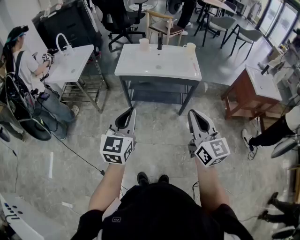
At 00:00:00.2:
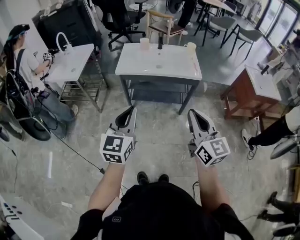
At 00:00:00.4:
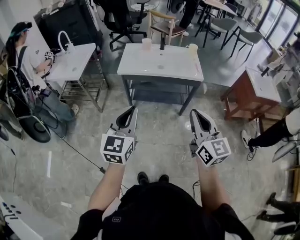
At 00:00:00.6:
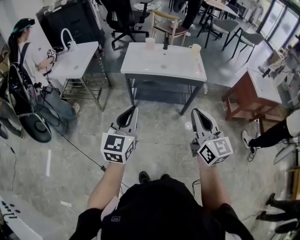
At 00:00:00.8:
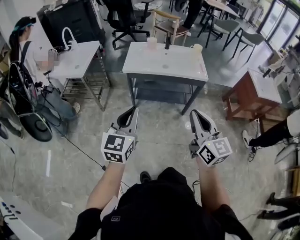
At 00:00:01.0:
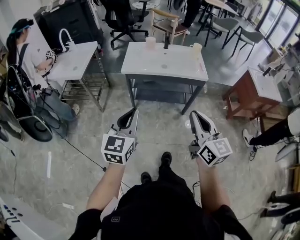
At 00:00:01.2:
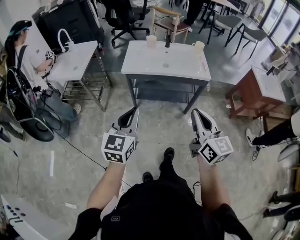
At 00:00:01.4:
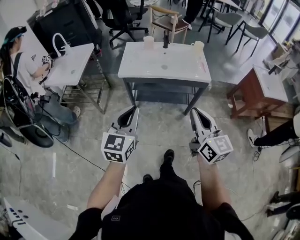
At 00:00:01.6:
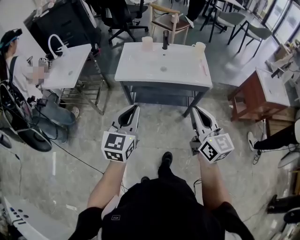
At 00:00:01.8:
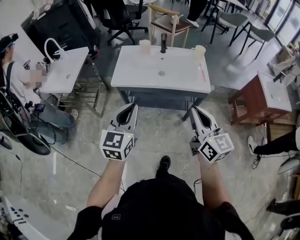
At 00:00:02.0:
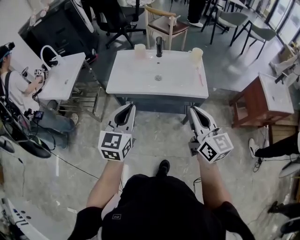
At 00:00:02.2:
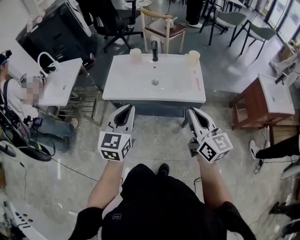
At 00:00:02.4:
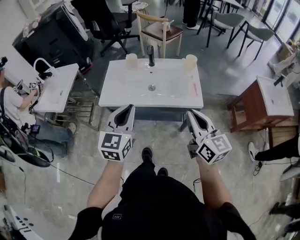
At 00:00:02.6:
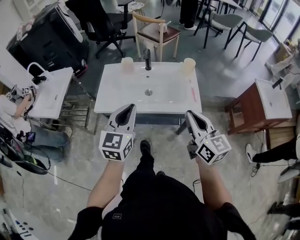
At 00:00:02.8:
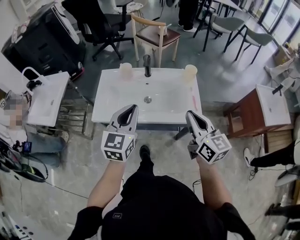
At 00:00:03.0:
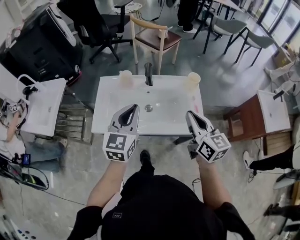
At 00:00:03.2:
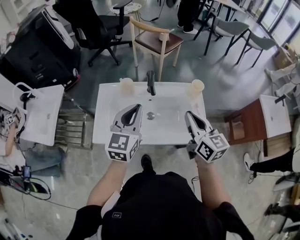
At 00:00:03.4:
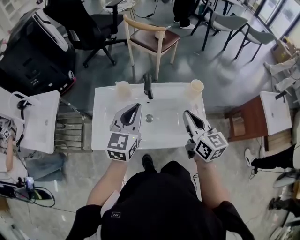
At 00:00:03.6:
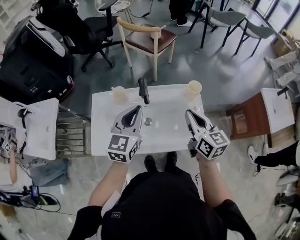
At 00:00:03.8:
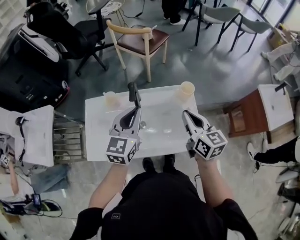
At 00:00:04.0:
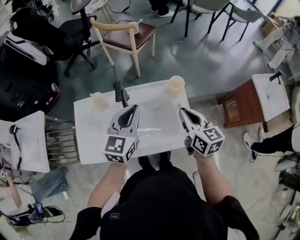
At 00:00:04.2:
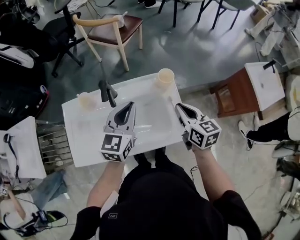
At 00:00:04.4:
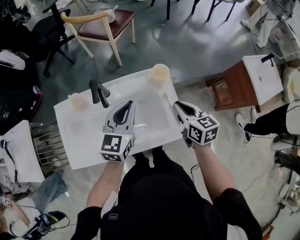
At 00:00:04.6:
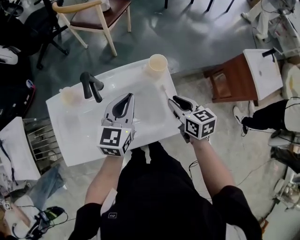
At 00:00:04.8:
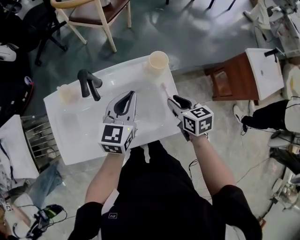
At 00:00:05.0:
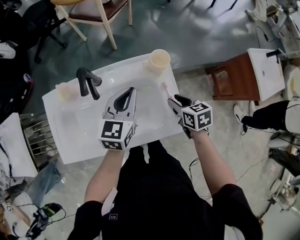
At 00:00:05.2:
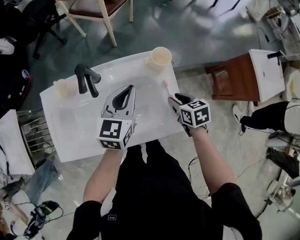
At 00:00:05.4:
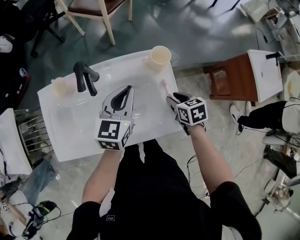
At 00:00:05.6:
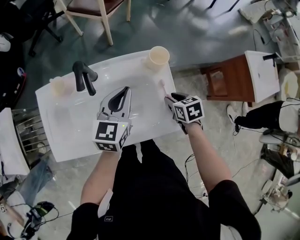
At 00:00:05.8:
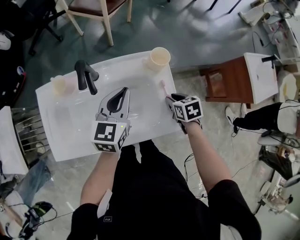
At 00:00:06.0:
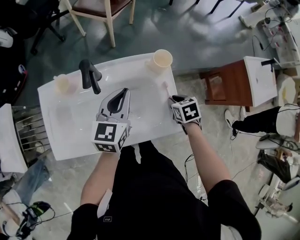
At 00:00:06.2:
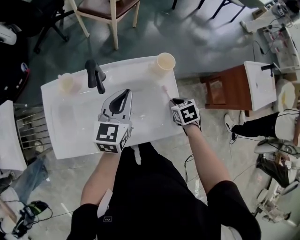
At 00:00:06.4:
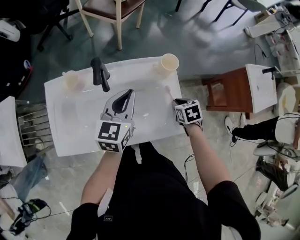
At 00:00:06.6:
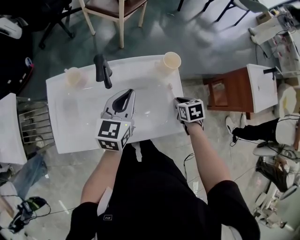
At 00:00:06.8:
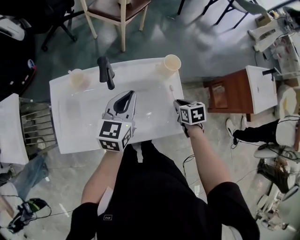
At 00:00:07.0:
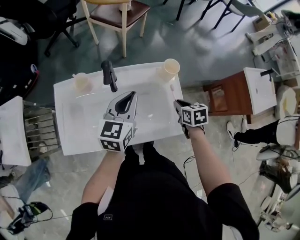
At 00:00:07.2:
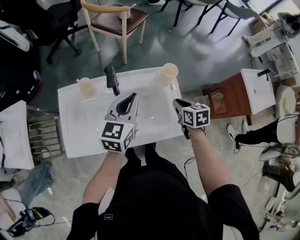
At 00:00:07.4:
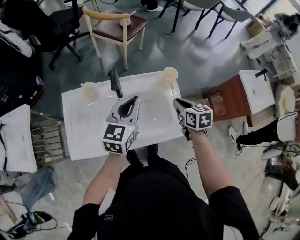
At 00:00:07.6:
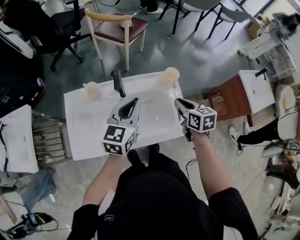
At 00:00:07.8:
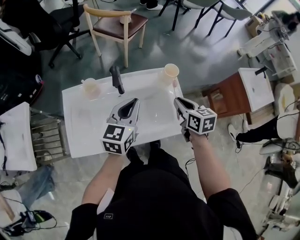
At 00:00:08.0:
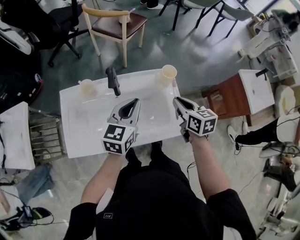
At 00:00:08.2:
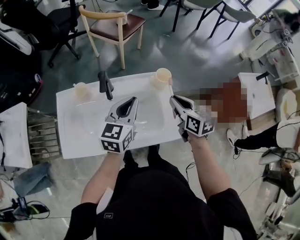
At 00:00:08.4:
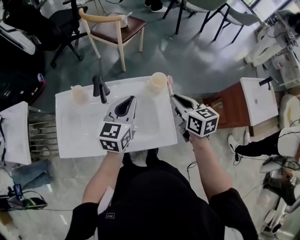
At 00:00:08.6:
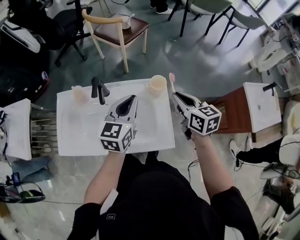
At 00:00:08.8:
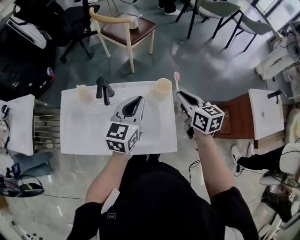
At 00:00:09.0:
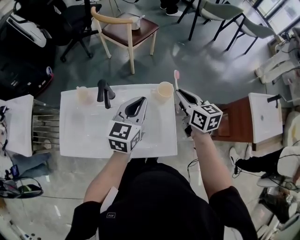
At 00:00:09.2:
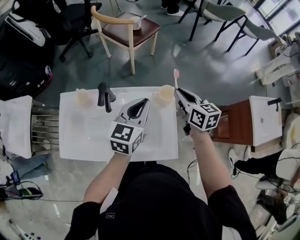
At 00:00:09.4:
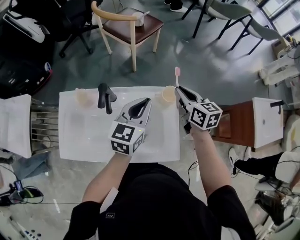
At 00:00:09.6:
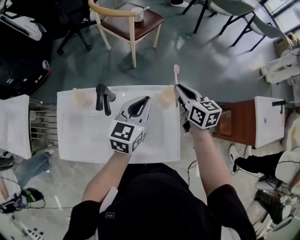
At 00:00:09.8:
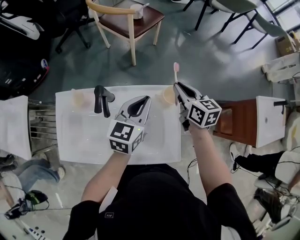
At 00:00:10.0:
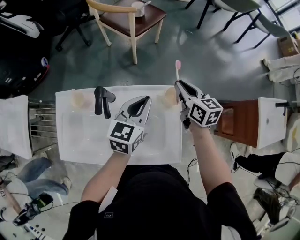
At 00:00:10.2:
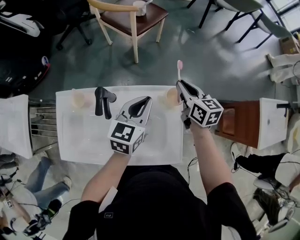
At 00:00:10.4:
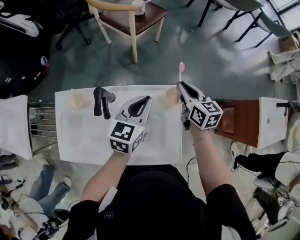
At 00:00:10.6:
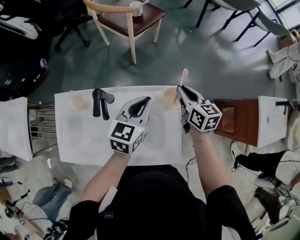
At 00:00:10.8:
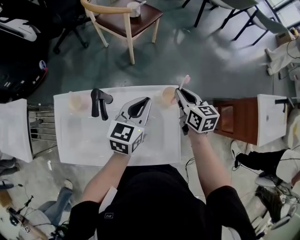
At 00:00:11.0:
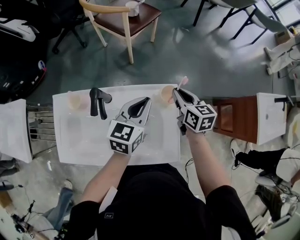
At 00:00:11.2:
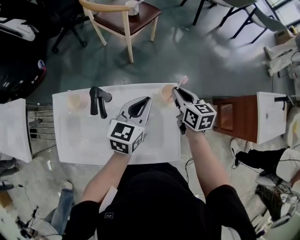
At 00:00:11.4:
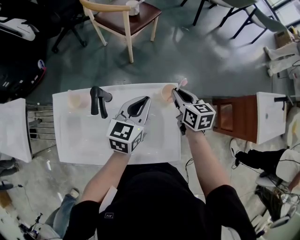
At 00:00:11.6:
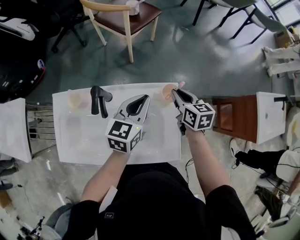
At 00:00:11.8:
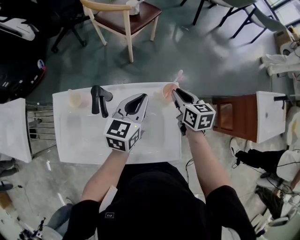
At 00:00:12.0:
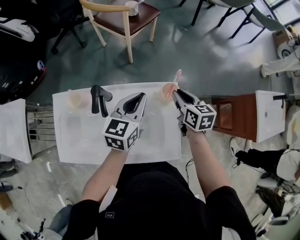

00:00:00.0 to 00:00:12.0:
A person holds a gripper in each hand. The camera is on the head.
00:00:00.0 to 00:00:01.6: The grippers both shift forward by some 15 cm.
00:00:01.6 to 00:00:03.0: The two grippers go some 40 cm forward.
00:00:03.0 to 00:00:04.4: The right gripper is displaced forward, to the right and downward by roughly 25 cm, and turns by about 20 degrees. Meanwhile the left gripper goes some 30 cm forward and to the right.
00:00:04.4 to 00:00:06.0: The left gripper moves downward, roughly 5 cm. Meanwhile the right gripper goes about 15 cm downward, and tilts its fingers approximately 30 degrees downward.
00:00:06.0 to 00:00:07.6: The left gripper heads upward and backward, covering roughly 10 cm. The right gripper heads upward and to the left, covering approximately 20 cm, and turns by roughly 30 degrees.
00:00:07.6 to 00:00:09.0: The left gripper shifts about 15 cm to the right and forward, while the right gripper moves forward and to the right, some 15 cm.
00:00:09.0 to 00:00:10.4: The two grippers go about 10 cm forward and downward.
00:00:10.4 to 00:00:12.0: The right gripper shifts by approximately 5 cm.

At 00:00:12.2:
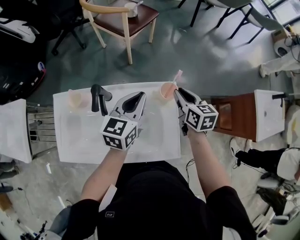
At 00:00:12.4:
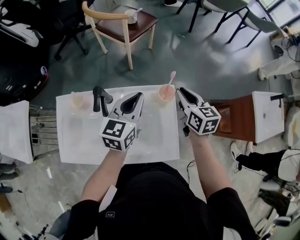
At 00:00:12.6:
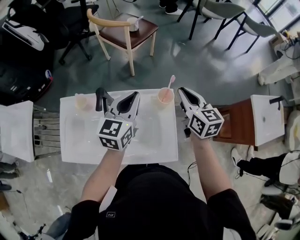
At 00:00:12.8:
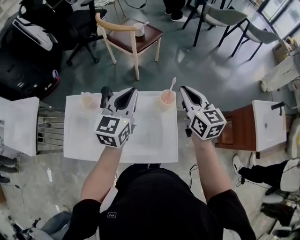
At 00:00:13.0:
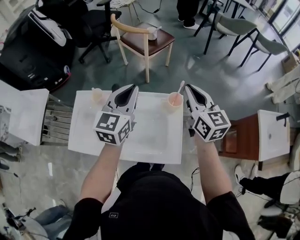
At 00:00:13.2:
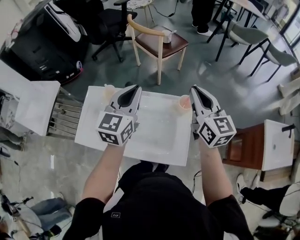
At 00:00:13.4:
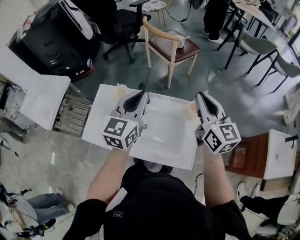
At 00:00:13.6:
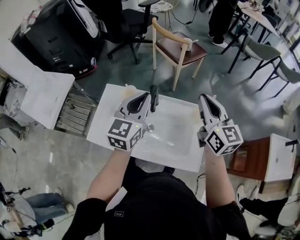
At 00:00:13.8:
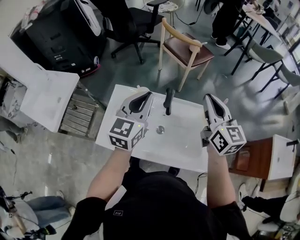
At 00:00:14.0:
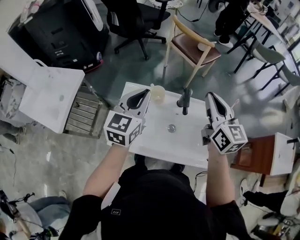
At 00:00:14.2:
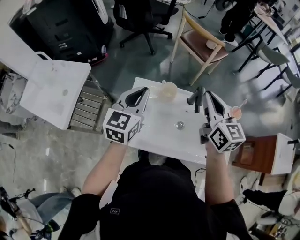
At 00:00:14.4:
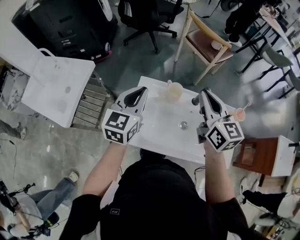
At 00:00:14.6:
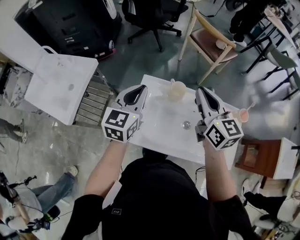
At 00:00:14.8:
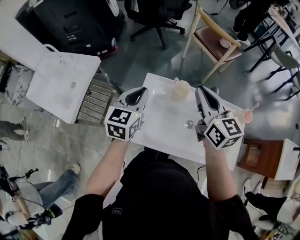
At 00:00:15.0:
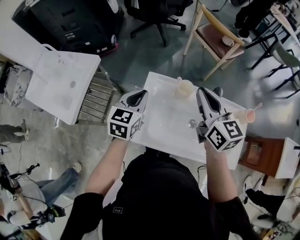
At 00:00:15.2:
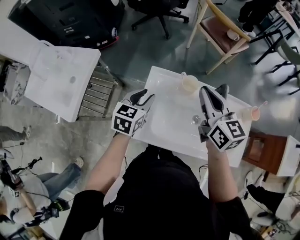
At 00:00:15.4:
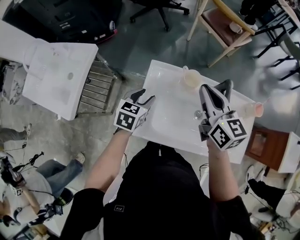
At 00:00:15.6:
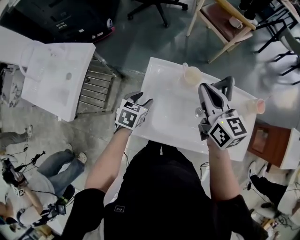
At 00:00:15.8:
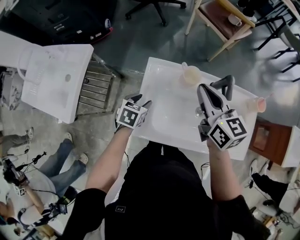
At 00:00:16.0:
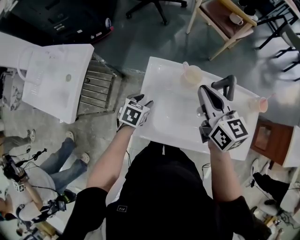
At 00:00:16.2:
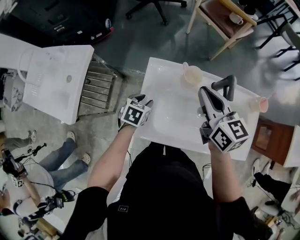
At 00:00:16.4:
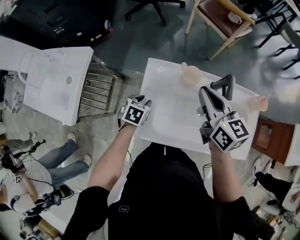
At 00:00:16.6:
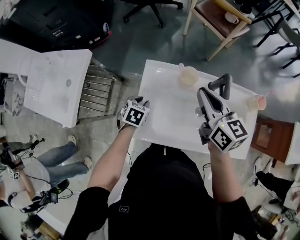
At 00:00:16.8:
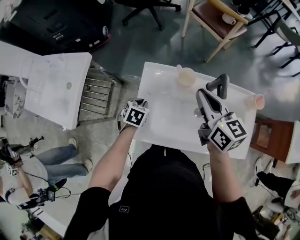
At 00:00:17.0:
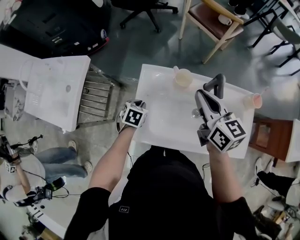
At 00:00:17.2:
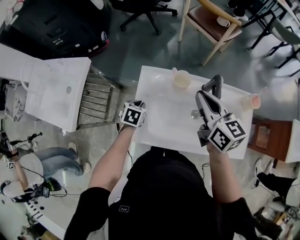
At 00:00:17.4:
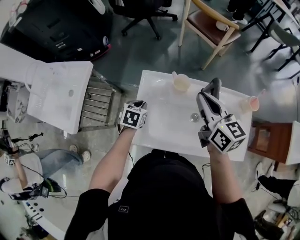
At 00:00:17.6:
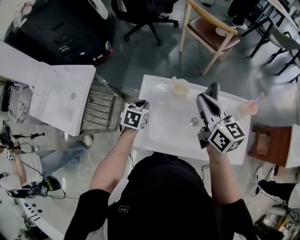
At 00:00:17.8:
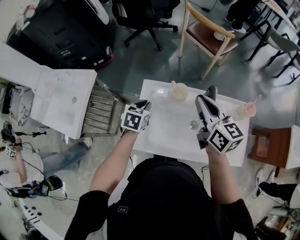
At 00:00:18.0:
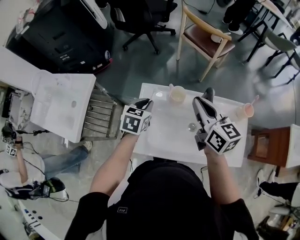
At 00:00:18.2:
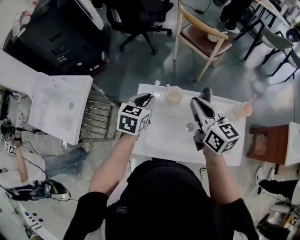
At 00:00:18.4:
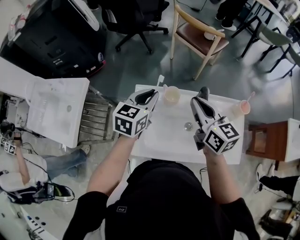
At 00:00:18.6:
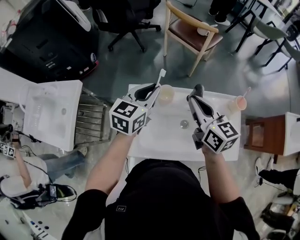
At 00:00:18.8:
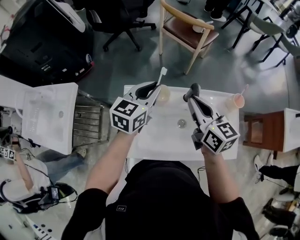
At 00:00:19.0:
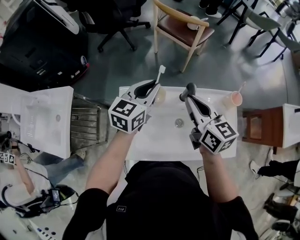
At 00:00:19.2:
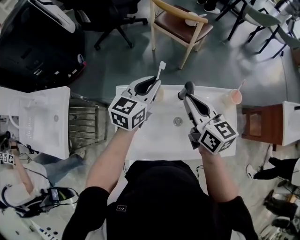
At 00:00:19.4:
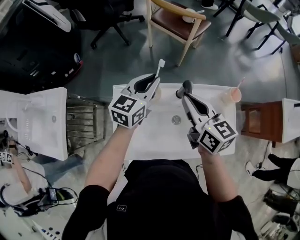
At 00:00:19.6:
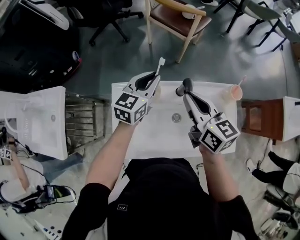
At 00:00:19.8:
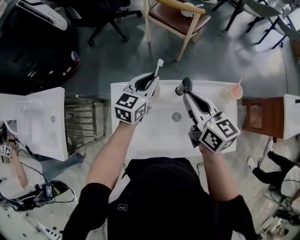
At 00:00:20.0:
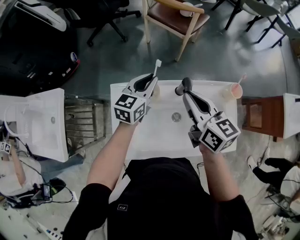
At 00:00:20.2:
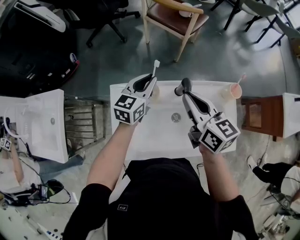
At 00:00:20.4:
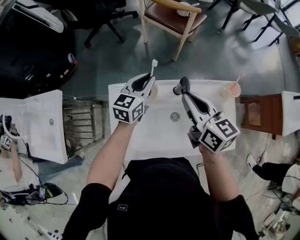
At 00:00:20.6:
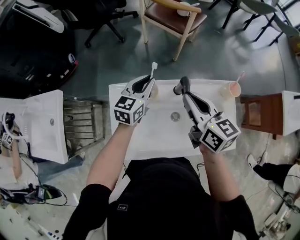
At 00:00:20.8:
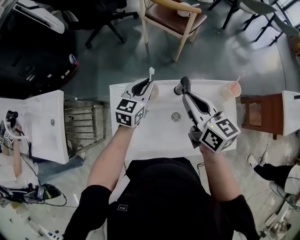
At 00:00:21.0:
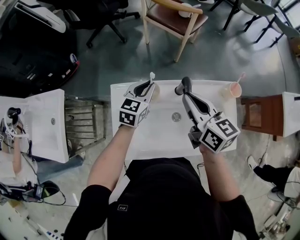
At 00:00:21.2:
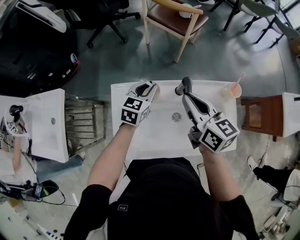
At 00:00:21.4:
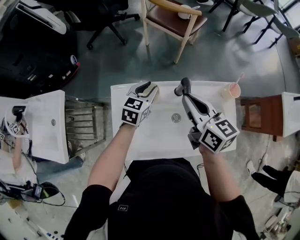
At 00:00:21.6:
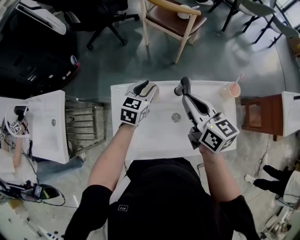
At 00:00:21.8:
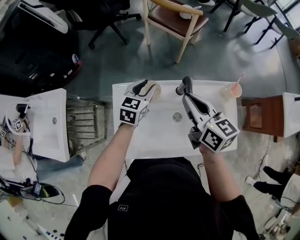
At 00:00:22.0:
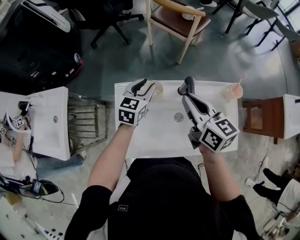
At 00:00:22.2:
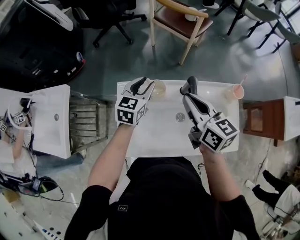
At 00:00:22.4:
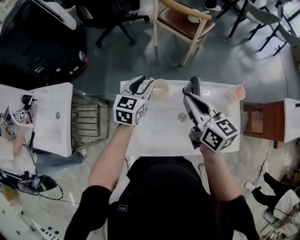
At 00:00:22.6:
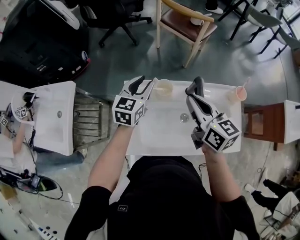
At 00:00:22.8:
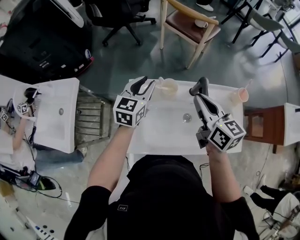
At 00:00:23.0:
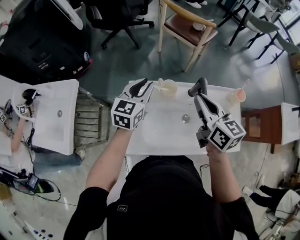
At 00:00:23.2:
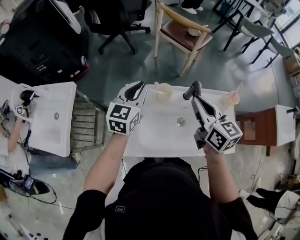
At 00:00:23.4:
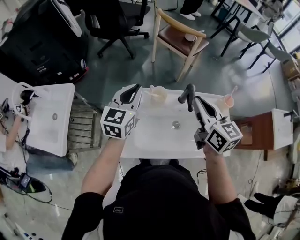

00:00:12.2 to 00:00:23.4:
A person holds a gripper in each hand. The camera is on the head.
00:00:12.2 to 00:00:13.8: The right gripper is displaced upward and to the left by some 30 cm, and changes its angle by some 30 degrees. The left gripper travels to the left and upward by approximately 30 cm, and turns by some 30 degrees.
00:00:13.8 to 00:00:15.4: The left gripper heads to the left and downward, covering about 35 cm, angles its fingers downward, by roughly 30 degrees, and opens; the right gripper is displaced to the left by about 25 cm.
00:00:15.4 to 00:00:17.0: The left gripper shifts approximately 10 cm downward, turns by roughly 20 degrees, and closes.
00:00:17.0 to 00:00:18.6: The left gripper is displaced upward and to the right by about 30 cm, and angles its fingers upward, by roughly 40 degrees, while the right gripper changes place by roughly 5 cm.
00:00:18.6 to 00:00:20.2: The right gripper shifts by approximately 5 cm. The left gripper shifts approximately 15 cm downward, forward and to the right.
00:00:20.2 to 00:00:21.8: The left gripper shifts by about 5 cm, and opens.
00:00:21.8 to 00:00:23.4: The left gripper shifts some 20 cm upward, to the left and backward, and closes. Meanwhile the right gripper goes some 5 cm upward.
